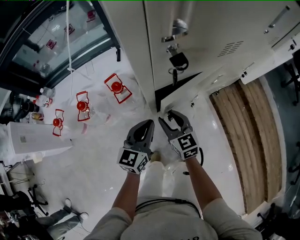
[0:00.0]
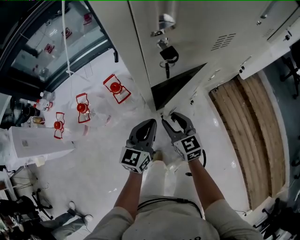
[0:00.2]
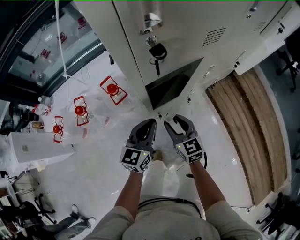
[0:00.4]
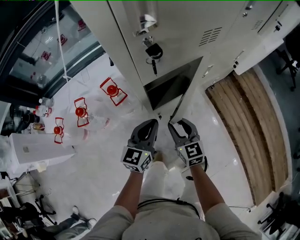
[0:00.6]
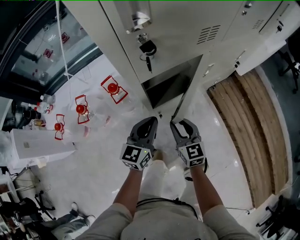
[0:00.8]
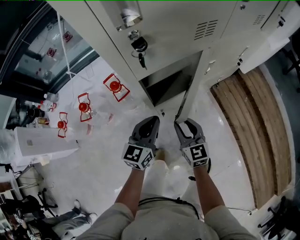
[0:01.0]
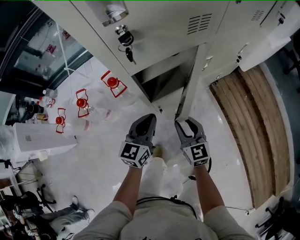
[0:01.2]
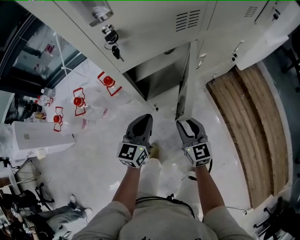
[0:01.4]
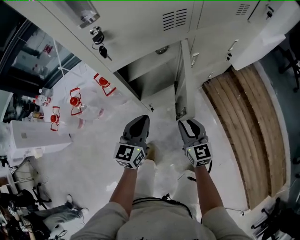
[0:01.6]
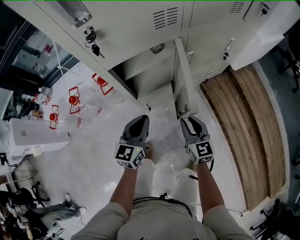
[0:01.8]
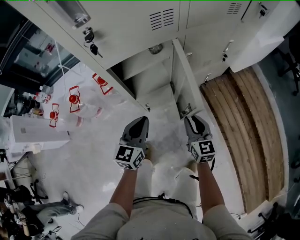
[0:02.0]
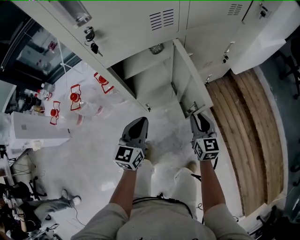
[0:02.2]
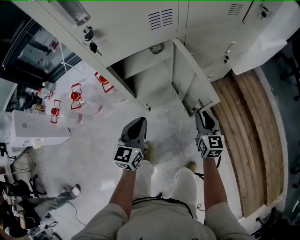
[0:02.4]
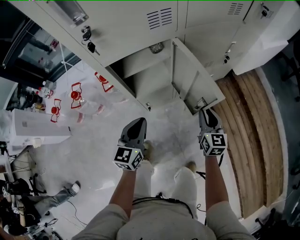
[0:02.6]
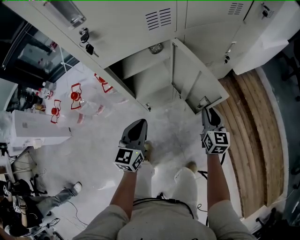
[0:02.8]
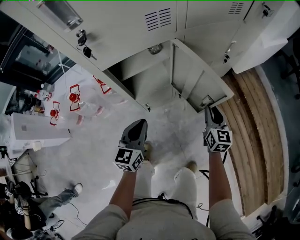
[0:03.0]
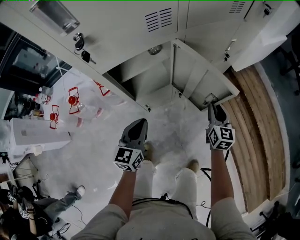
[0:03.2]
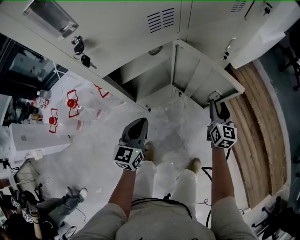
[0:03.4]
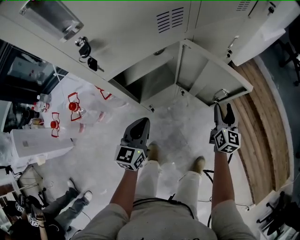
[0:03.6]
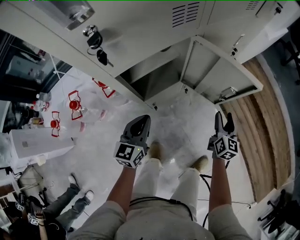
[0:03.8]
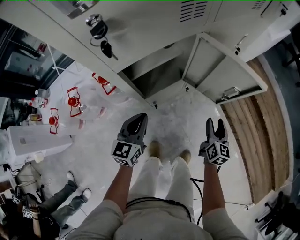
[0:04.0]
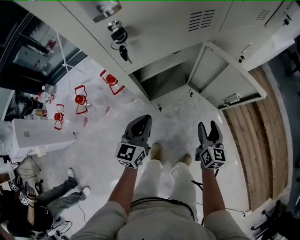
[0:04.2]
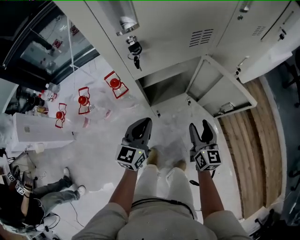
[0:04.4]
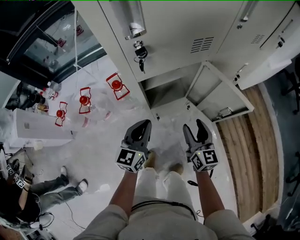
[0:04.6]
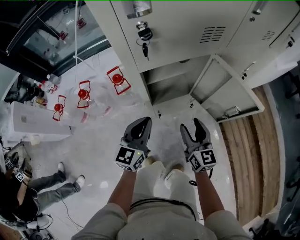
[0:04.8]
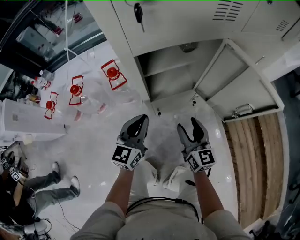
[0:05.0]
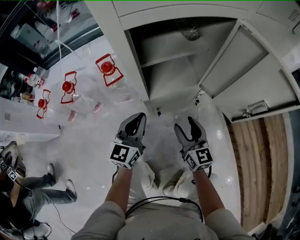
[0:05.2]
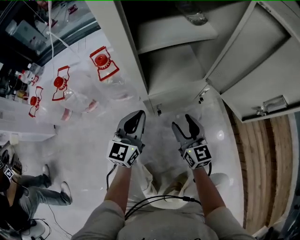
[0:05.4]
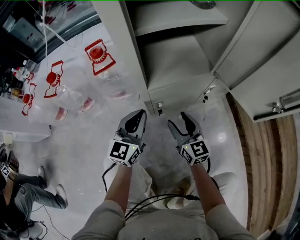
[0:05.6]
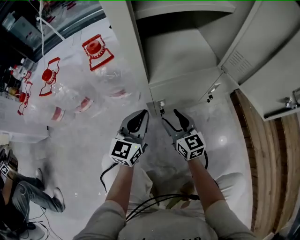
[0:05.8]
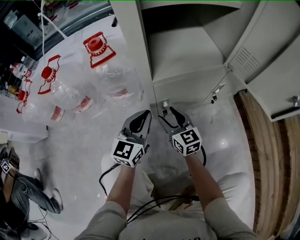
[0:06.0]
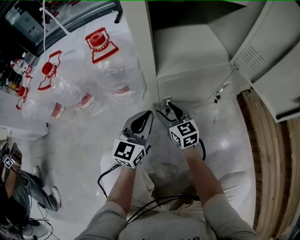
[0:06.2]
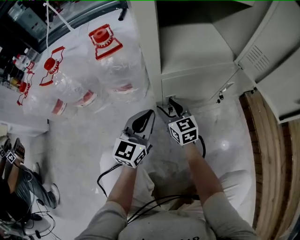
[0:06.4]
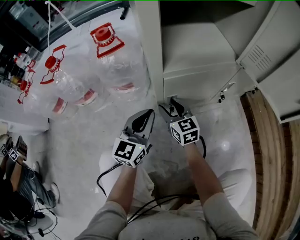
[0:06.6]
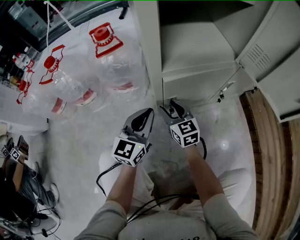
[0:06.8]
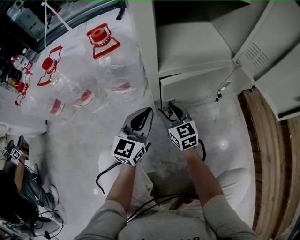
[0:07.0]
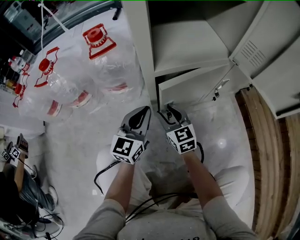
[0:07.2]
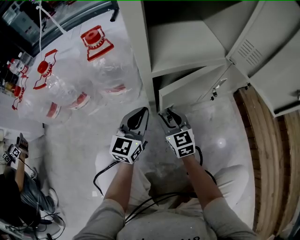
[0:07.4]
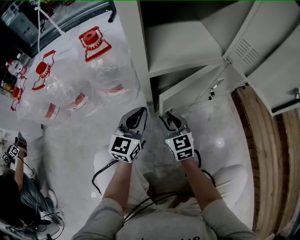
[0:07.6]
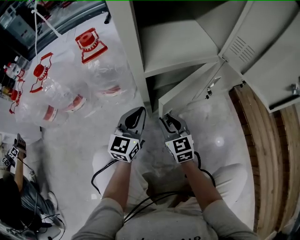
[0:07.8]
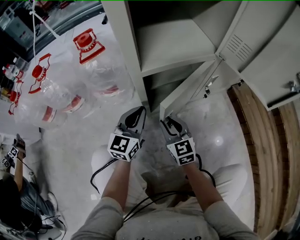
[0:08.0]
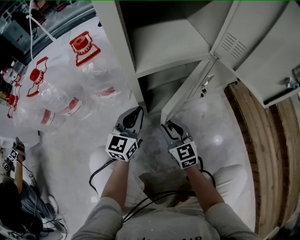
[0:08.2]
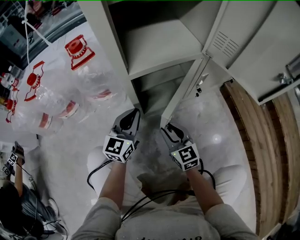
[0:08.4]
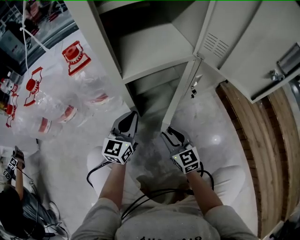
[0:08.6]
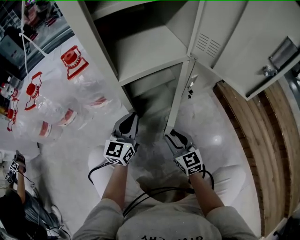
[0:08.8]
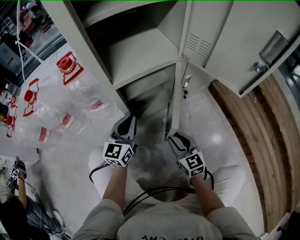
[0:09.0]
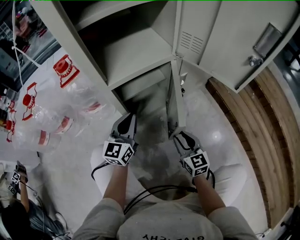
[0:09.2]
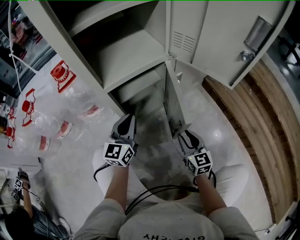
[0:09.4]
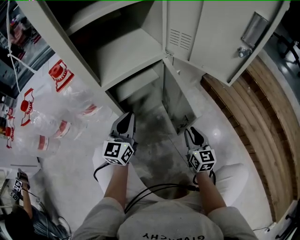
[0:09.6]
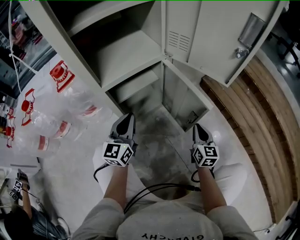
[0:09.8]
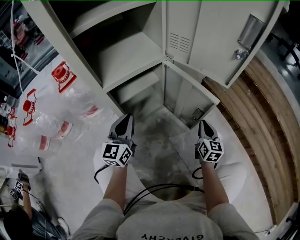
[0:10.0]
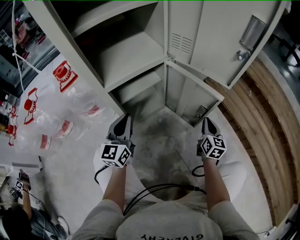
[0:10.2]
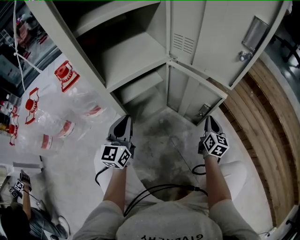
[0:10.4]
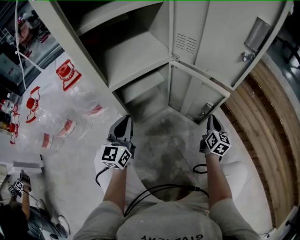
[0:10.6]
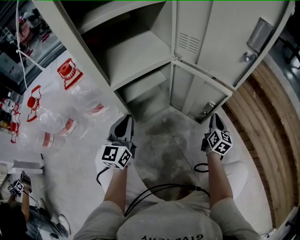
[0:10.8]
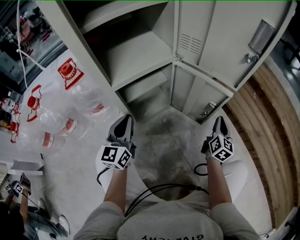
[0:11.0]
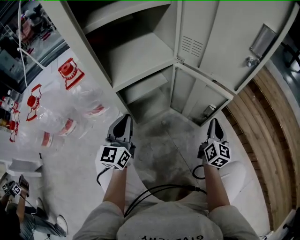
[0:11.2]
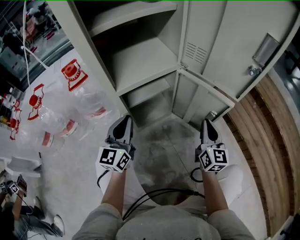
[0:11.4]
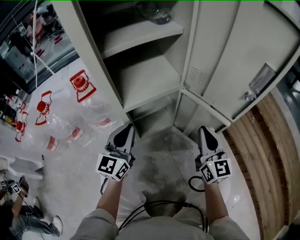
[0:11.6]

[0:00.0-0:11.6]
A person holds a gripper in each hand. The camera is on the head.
0:00.0 to 0:01.4: The left gripper heads to the right, covering approximately 10 cm; the right gripper moves to the right and backward, about 20 cm.
0:01.4 to 0:02.8: The left gripper moves to the right, some 5 cm. Meanwhile the right gripper is displaced to the right by roughly 20 cm.
0:02.8 to 0:04.4: The right gripper moves to the left, roughly 15 cm, and opens, while the left gripper goes approximately 10 cm to the left.
0:04.4 to 0:05.8: The two grippers go about 40 cm downward. The right gripper swivels approximately 30 degrees.
0:05.8 to 0:07.2: The right gripper goes roughly 5 cm downward.
0:07.2 to 0:08.8: The right gripper shifts about 15 cm to the right and backward. Meanwhile the left gripper moves to the right, some 5 cm.
0:08.8 to 0:10.2: The right gripper is displaced to the right by roughly 25 cm, swivels about 40 degrees, and closes its fingers.
0:10.2 to 0:11.6: The left gripper moves upward, some 10 cm; the right gripper goes approximately 25 cm upward and to the left, and turns by approximately 30 degrees.

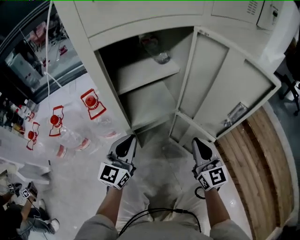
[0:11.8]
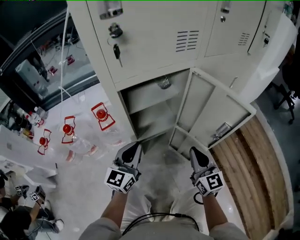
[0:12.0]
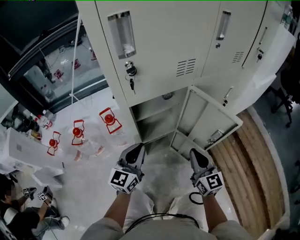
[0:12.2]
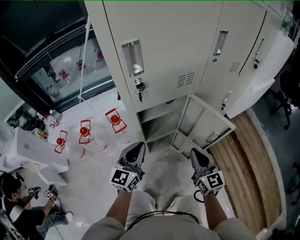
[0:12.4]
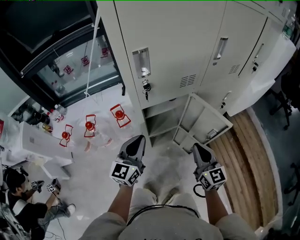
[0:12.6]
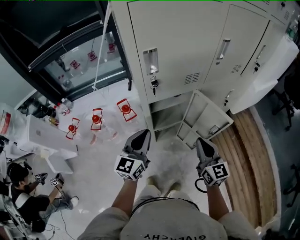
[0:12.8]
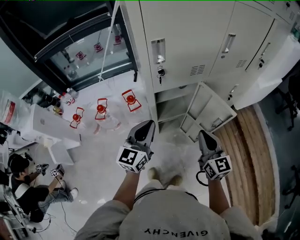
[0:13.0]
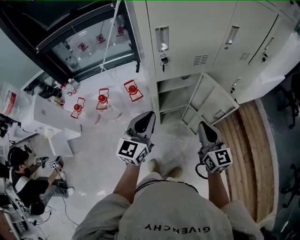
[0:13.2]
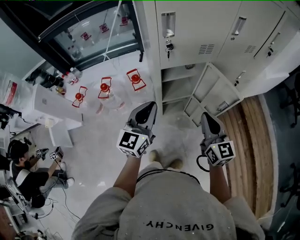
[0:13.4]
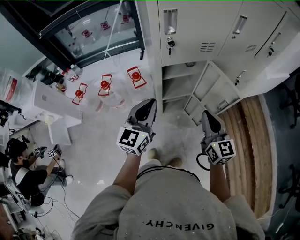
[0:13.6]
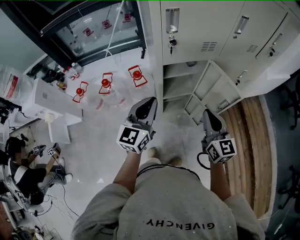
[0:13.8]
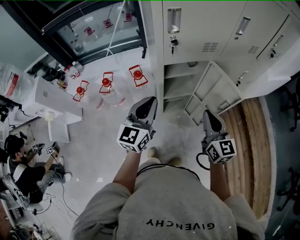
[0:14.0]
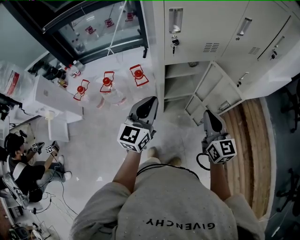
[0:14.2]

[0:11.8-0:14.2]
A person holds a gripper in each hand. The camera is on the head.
0:11.8 to 0:13.0: Both grippers move upward, some 40 cm.
0:13.0 to 0:14.2: The grippers move only a little.

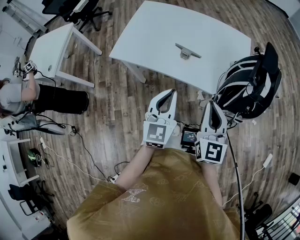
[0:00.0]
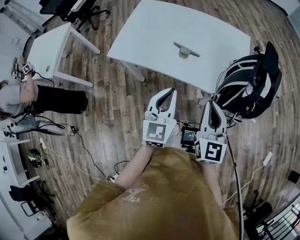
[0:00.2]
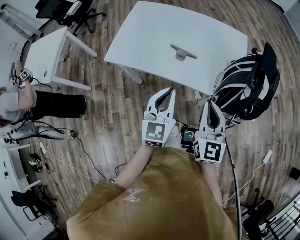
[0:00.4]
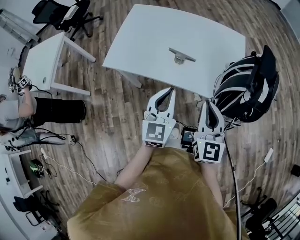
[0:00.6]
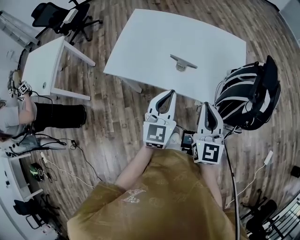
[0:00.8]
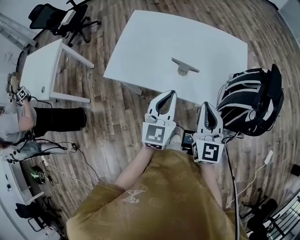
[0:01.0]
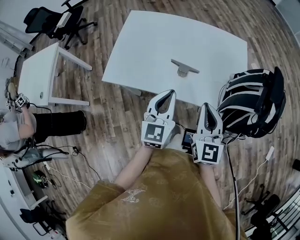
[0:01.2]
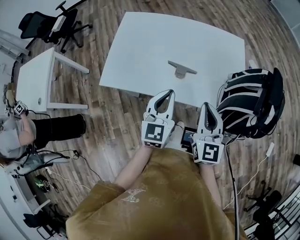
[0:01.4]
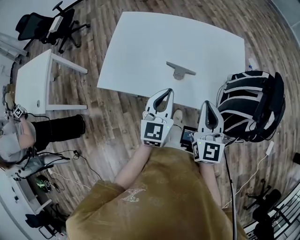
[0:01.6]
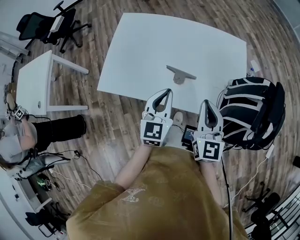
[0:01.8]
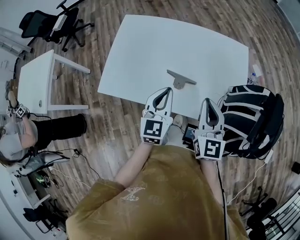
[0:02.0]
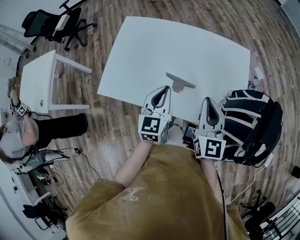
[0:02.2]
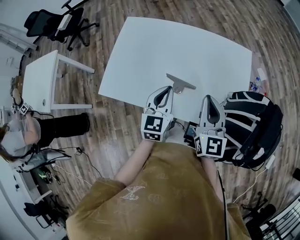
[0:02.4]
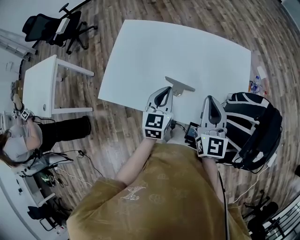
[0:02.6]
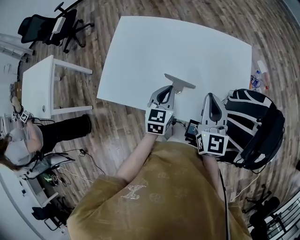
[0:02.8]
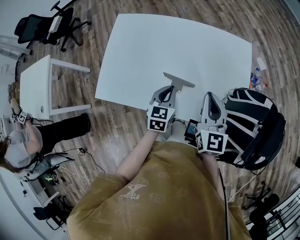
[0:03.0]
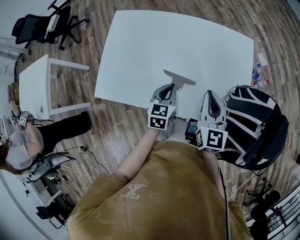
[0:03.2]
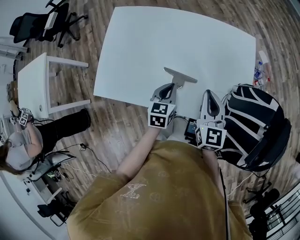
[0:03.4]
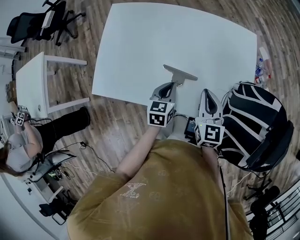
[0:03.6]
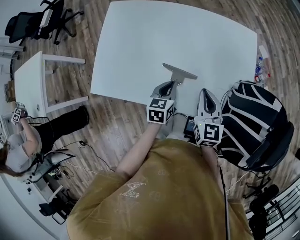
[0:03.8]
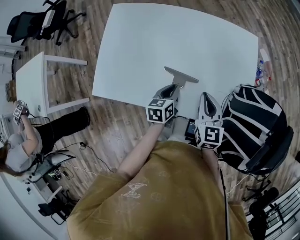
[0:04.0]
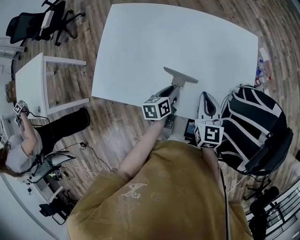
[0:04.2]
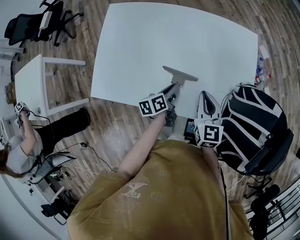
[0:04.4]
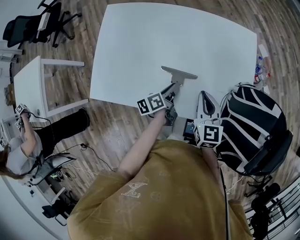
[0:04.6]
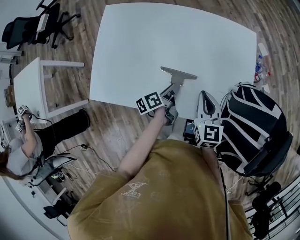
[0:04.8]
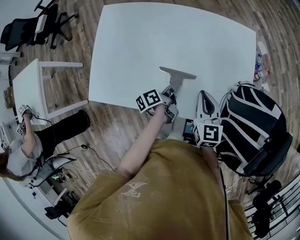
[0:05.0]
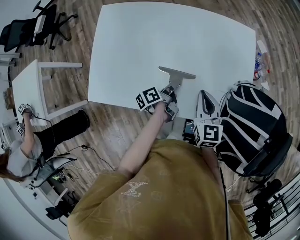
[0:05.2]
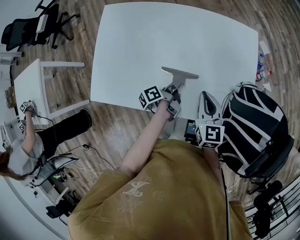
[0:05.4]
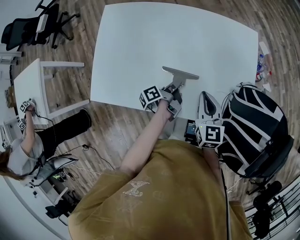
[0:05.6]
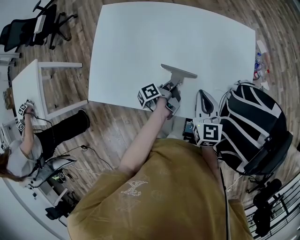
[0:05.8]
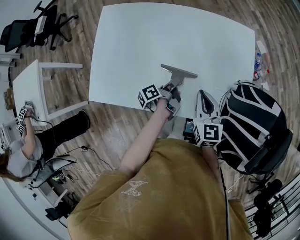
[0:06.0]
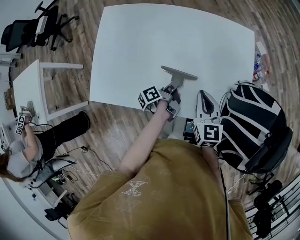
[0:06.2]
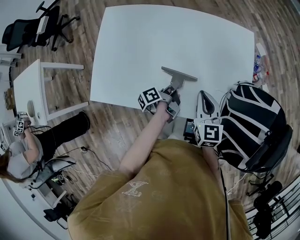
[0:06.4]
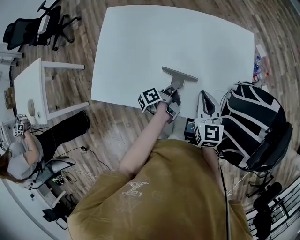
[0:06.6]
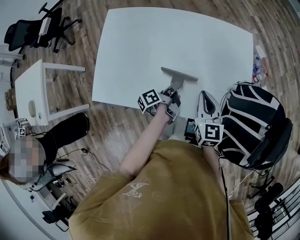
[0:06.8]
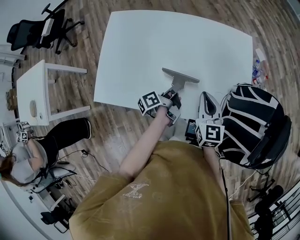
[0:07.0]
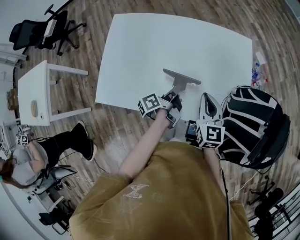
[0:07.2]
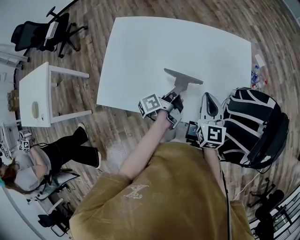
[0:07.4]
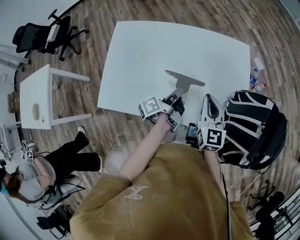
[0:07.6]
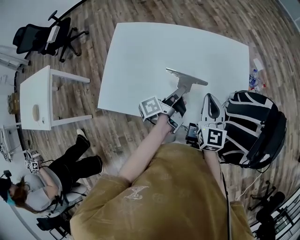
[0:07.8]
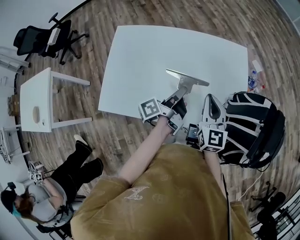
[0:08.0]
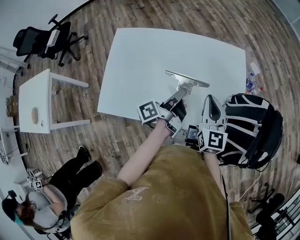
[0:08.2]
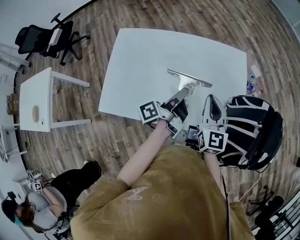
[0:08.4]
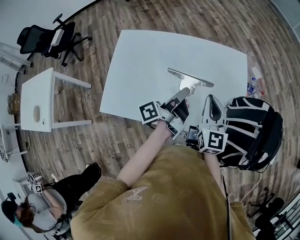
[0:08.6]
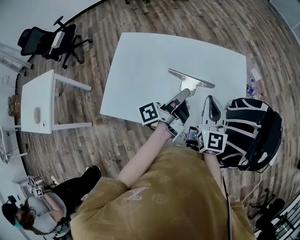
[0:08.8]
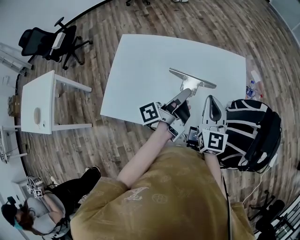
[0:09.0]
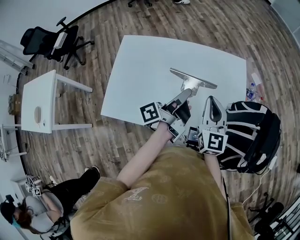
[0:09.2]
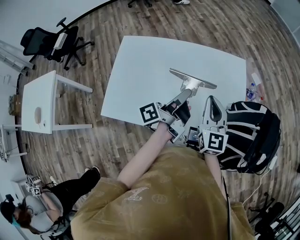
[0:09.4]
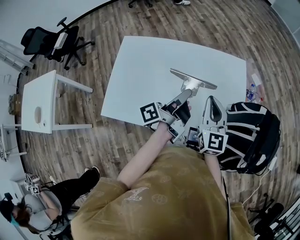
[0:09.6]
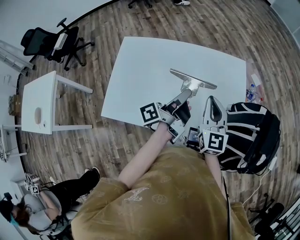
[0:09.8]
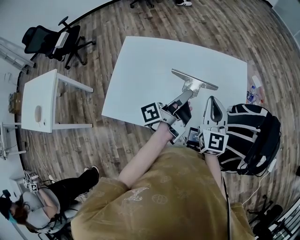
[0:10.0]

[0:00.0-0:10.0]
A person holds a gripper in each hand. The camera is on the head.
0:00.0 to 0:01.4: The right gripper goes approximately 15 cm forward and to the left, while the left gripper is displaced forward by about 15 cm.
0:01.4 to 0:02.8: The left gripper is displaced forward and downward by roughly 15 cm; the right gripper heads forward, covering approximately 15 cm.
0:02.8 to 0:04.2: Both grippers move downward, roughly 15 cm. The left gripper rotates about 40 degrees.
0:04.2 to 0:05.8: The left gripper shifts by roughly 5 cm, and rotates around the line of its fingers by approximately 50 degrees, counterclockwise from behind.
0:05.8 to 0:07.2: The left gripper heads upward, covering approximately 10 cm.
0:07.2 to 0:08.6: The right gripper travels upward by some 10 cm. The left gripper shifts about 15 cm upward, and changes its angle by approximately 20 degrees.
0:08.6 to 0:10.0: The grippers stay close to where they were, moving slightly.
